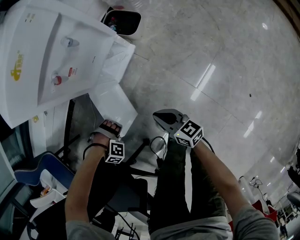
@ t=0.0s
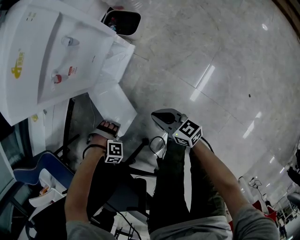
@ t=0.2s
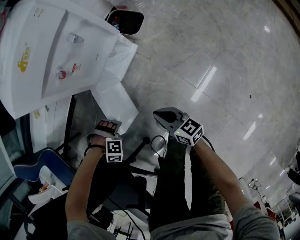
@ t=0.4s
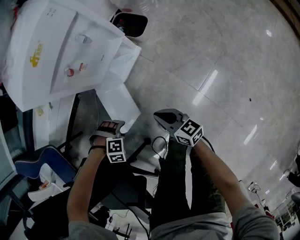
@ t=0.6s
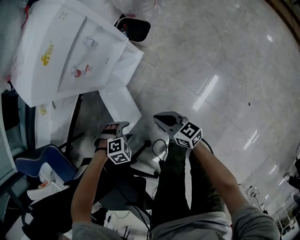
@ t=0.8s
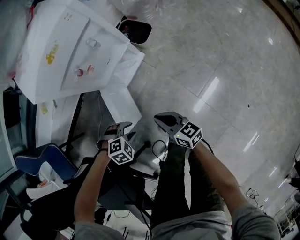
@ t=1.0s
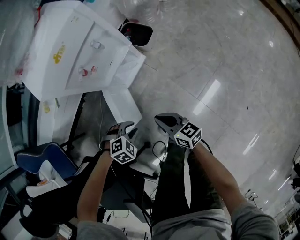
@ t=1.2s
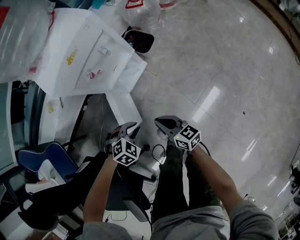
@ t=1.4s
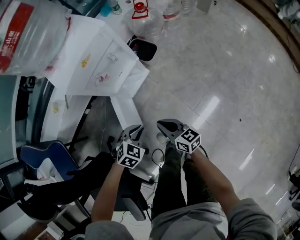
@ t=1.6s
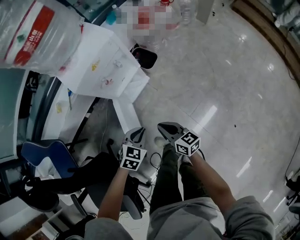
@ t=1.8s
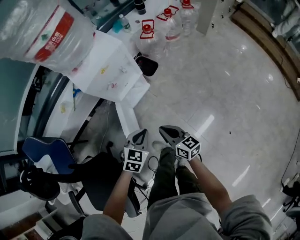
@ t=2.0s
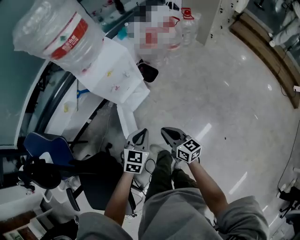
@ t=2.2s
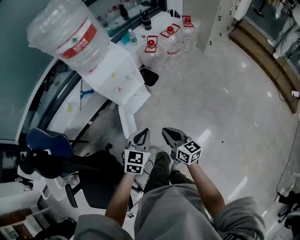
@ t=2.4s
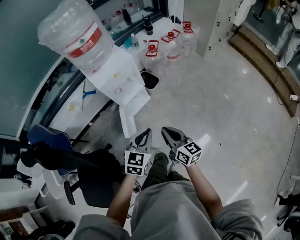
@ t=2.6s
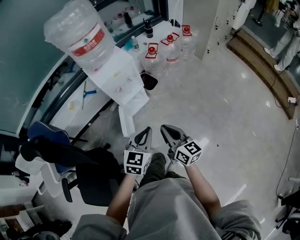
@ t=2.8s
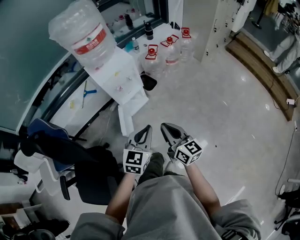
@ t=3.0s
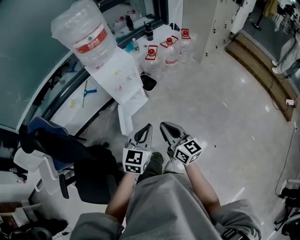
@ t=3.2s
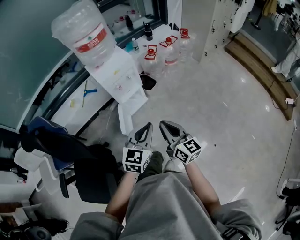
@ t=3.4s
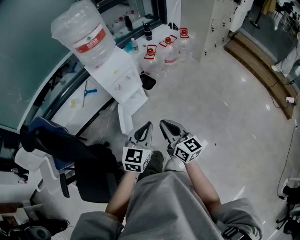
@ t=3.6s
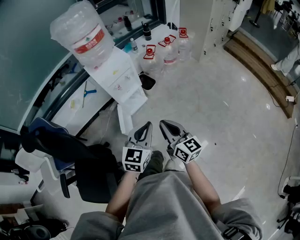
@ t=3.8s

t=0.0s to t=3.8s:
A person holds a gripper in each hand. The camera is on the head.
t=0.0s to t=1.2s: The left gripper is displaced upward by approximately 15 cm, and rolls counterclockwise, seen from behind, by some 60 degrees, while the right gripper travels upward by approximately 5 cm.
t=1.2s to t=2.6s: The grippers both shift upward by some 40 cm. The left gripper points its fingers roughly 50 degrees further upward, and closes its fingers.
t=2.6s to t=3.8s: The two grippers go roughly 10 cm upward and backward.

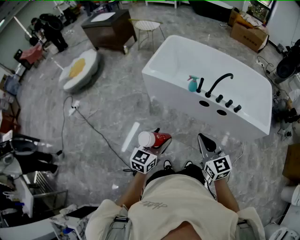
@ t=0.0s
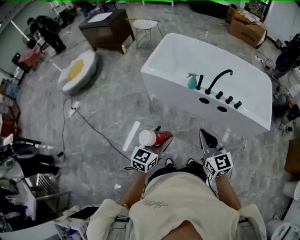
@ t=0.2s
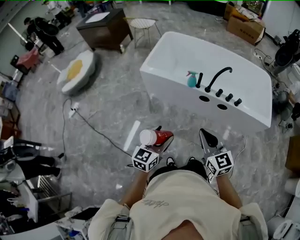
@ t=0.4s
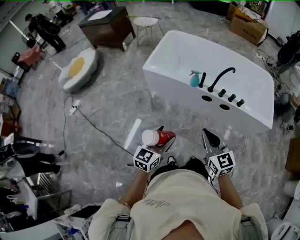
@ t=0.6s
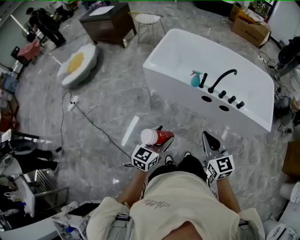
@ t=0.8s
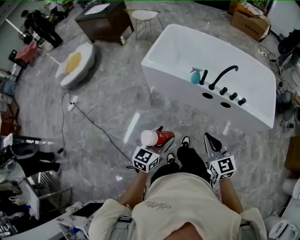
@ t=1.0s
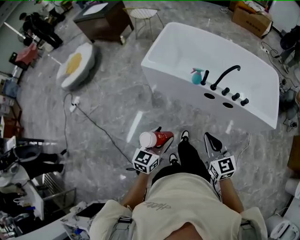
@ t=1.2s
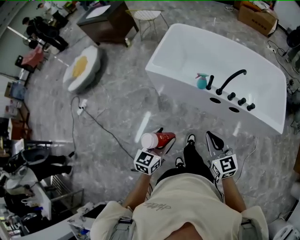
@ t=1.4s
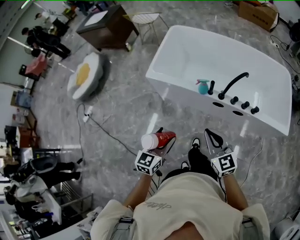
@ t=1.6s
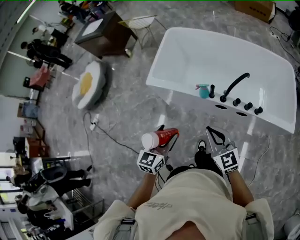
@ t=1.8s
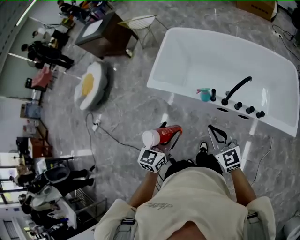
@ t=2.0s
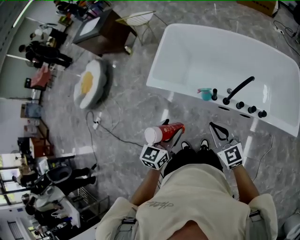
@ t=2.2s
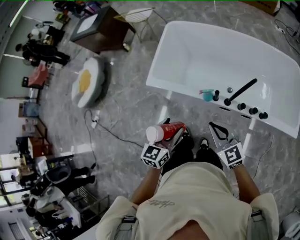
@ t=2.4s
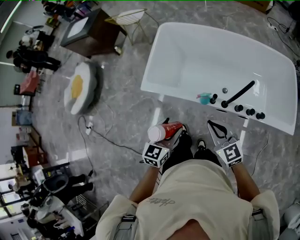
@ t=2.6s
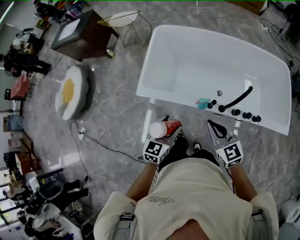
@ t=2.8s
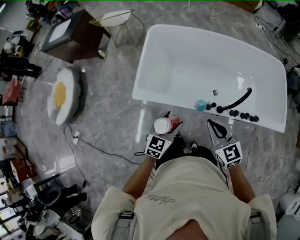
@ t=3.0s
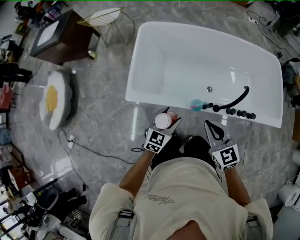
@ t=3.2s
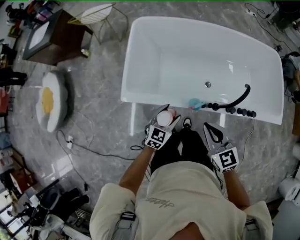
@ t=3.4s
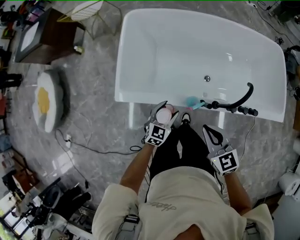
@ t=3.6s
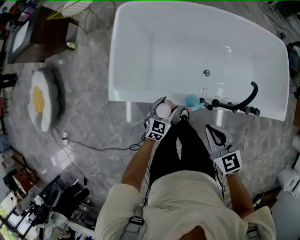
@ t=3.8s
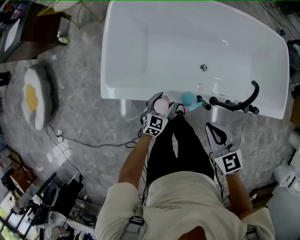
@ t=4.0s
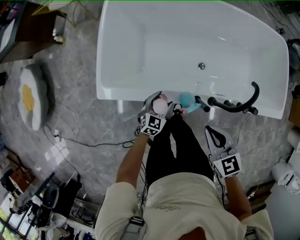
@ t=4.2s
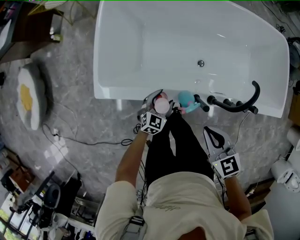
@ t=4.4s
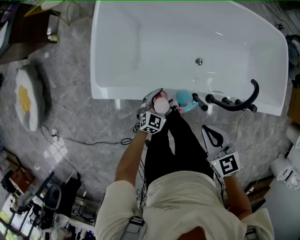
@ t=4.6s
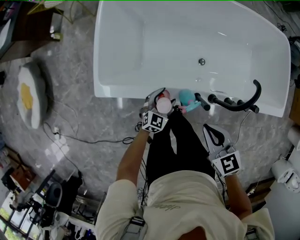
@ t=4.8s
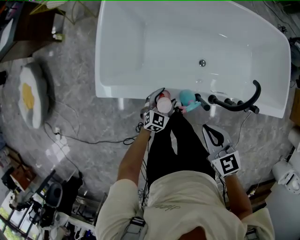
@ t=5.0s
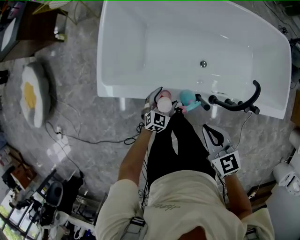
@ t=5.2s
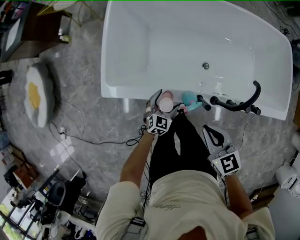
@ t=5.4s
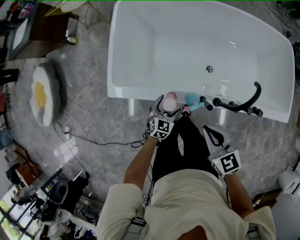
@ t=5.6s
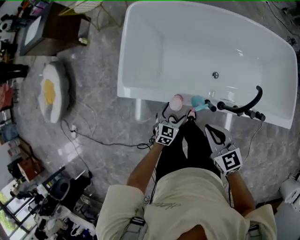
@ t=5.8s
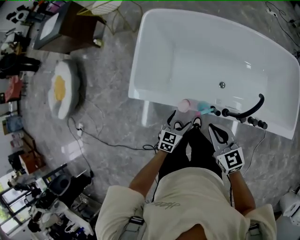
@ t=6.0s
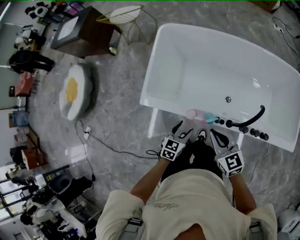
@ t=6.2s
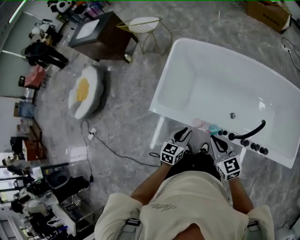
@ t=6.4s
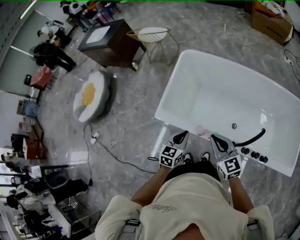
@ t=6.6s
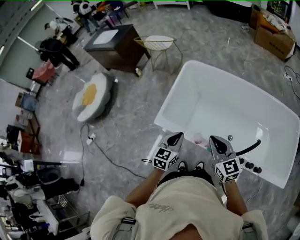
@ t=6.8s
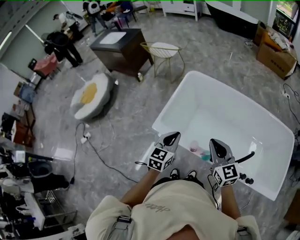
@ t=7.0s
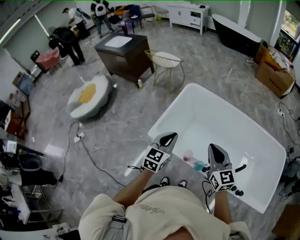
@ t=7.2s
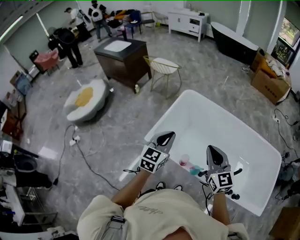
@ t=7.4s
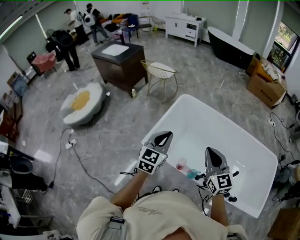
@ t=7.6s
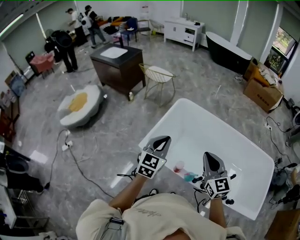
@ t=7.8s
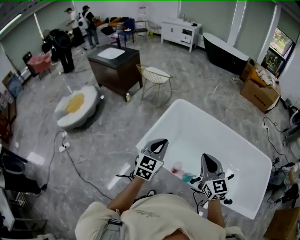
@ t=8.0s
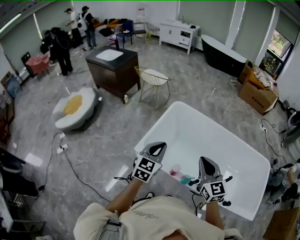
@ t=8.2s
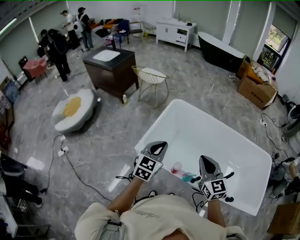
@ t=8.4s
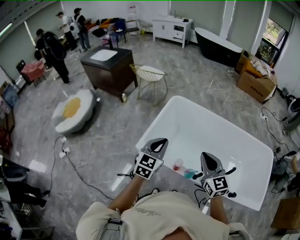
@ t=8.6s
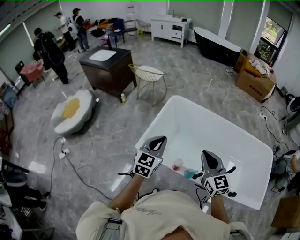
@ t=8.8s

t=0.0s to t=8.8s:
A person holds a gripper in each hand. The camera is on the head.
t=0.0s to t=1.4s: Both grippers travel together forward, roughly 10 cm.
t=1.4s to t=3.0s: Both grippers move forward, about 30 cm. The left gripper changes its angle by some 20 degrees.
t=3.0s to t=4.4s: The right gripper moves downward and to the right, roughly 15 cm, and turns by about 20 degrees; the left gripper is displaced downward and forward by roughly 30 cm.
t=4.4s to t=5.8s: The left gripper moves about 5 cm.
t=5.8s to t=7.4s: The right gripper travels upward and forward by approximately 25 cm, and changes its angle by about 30 degrees, while the left gripper shifts roughly 40 cm upward, rotates roughly 40 degrees, and closes its fingers.
t=7.4s to t=8.8s: There are only small adjustments of the grippers.

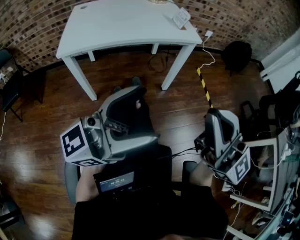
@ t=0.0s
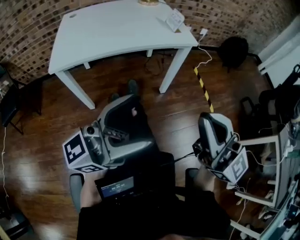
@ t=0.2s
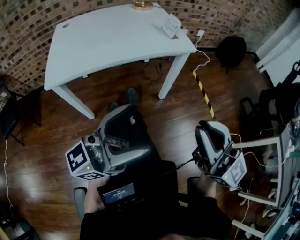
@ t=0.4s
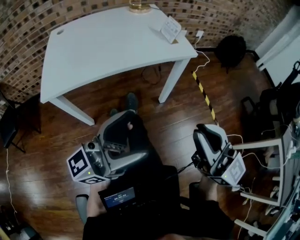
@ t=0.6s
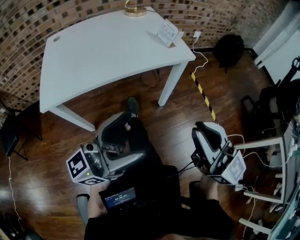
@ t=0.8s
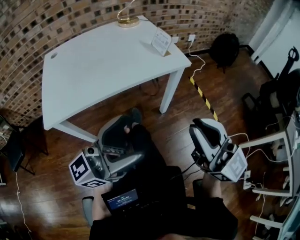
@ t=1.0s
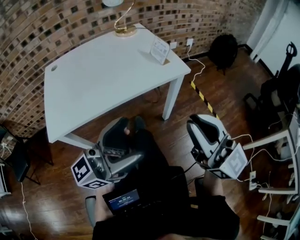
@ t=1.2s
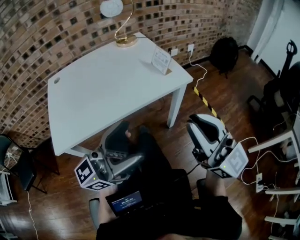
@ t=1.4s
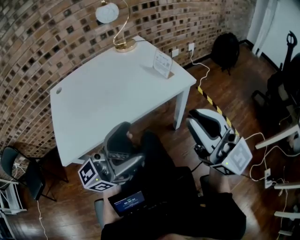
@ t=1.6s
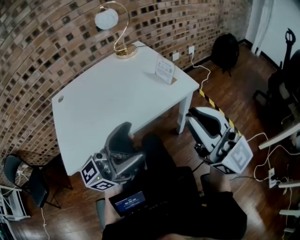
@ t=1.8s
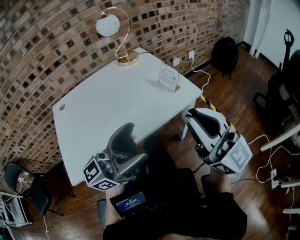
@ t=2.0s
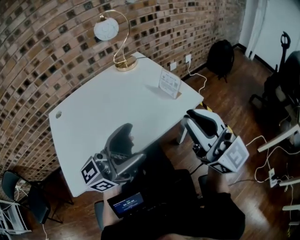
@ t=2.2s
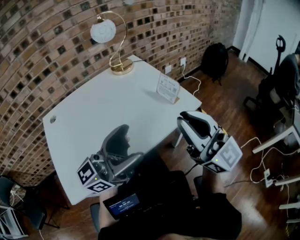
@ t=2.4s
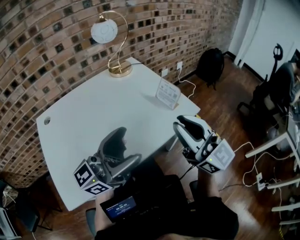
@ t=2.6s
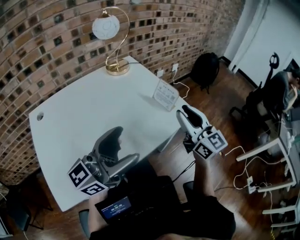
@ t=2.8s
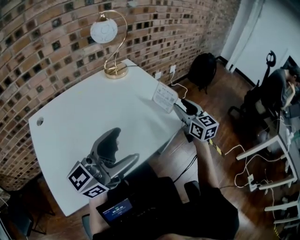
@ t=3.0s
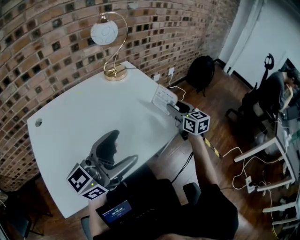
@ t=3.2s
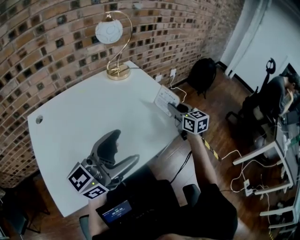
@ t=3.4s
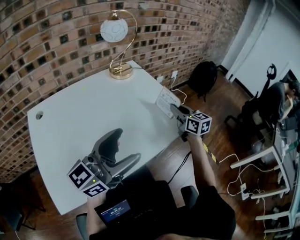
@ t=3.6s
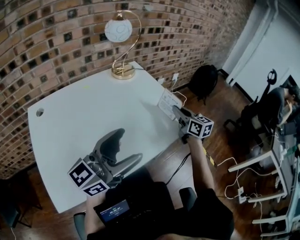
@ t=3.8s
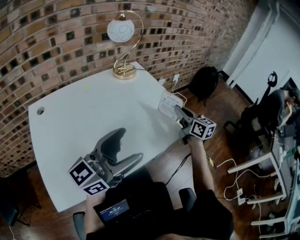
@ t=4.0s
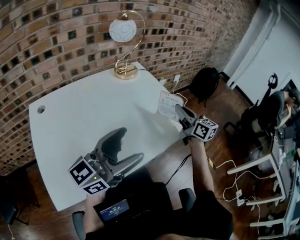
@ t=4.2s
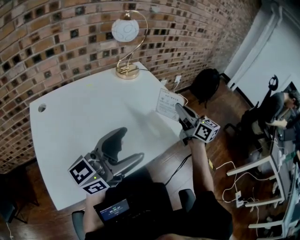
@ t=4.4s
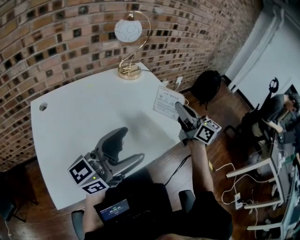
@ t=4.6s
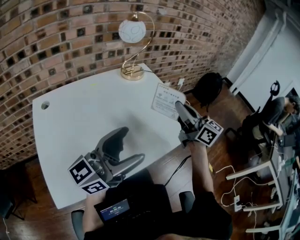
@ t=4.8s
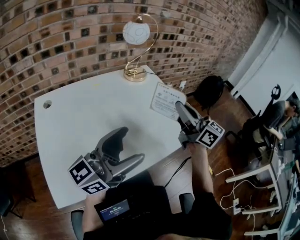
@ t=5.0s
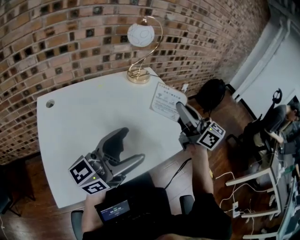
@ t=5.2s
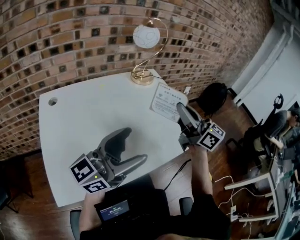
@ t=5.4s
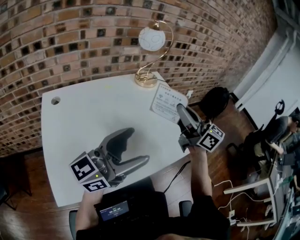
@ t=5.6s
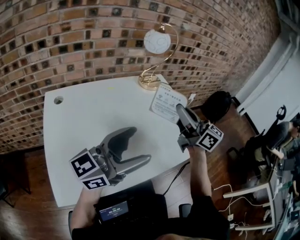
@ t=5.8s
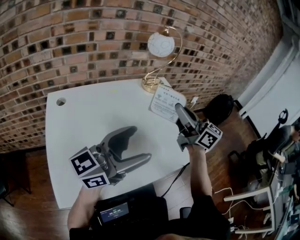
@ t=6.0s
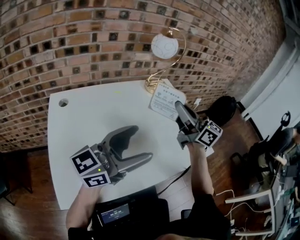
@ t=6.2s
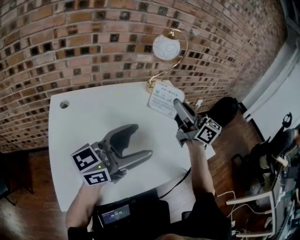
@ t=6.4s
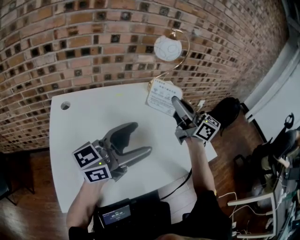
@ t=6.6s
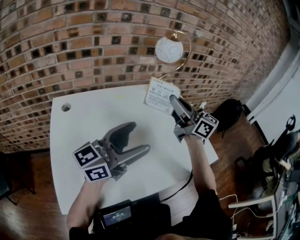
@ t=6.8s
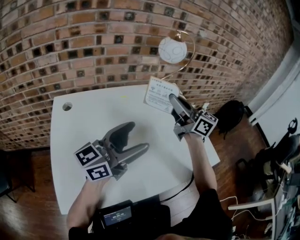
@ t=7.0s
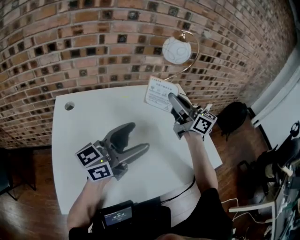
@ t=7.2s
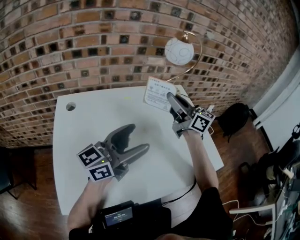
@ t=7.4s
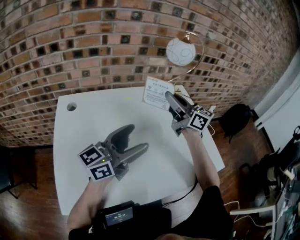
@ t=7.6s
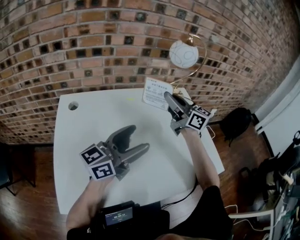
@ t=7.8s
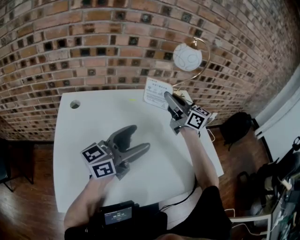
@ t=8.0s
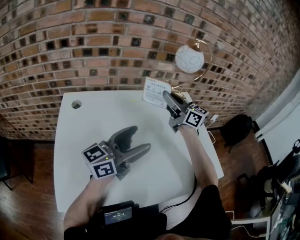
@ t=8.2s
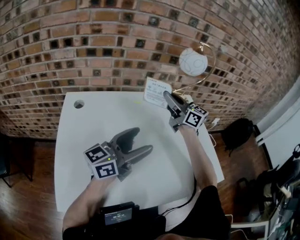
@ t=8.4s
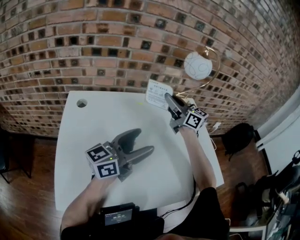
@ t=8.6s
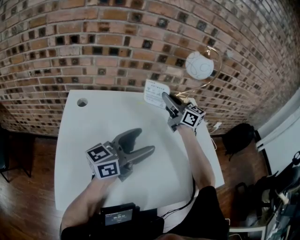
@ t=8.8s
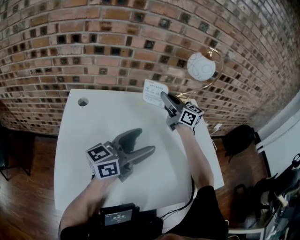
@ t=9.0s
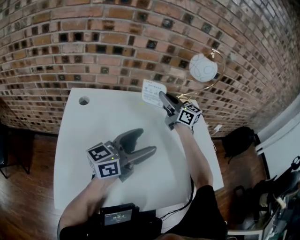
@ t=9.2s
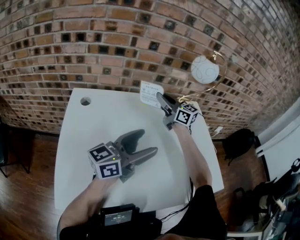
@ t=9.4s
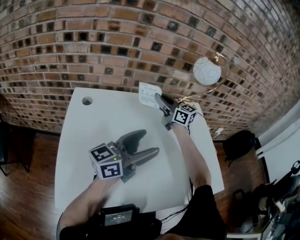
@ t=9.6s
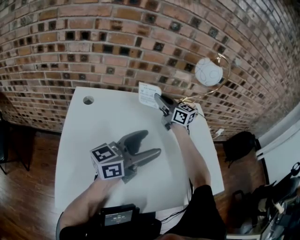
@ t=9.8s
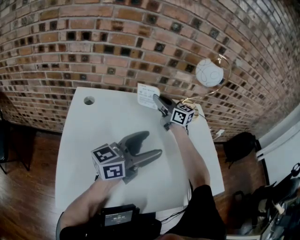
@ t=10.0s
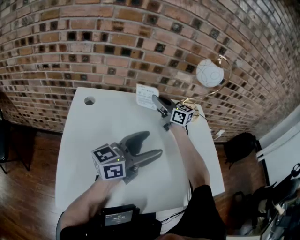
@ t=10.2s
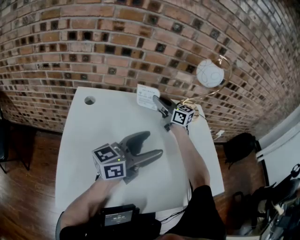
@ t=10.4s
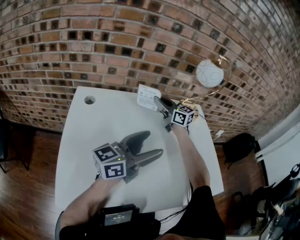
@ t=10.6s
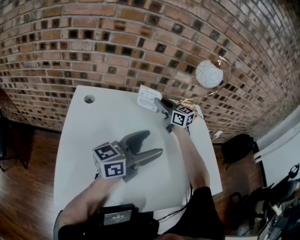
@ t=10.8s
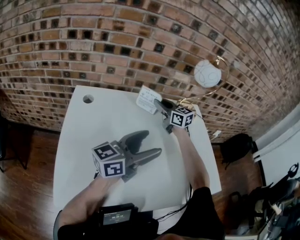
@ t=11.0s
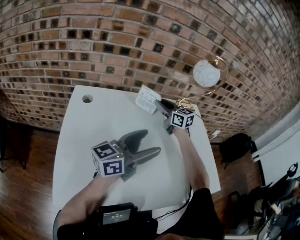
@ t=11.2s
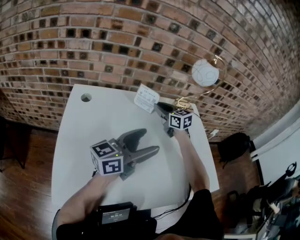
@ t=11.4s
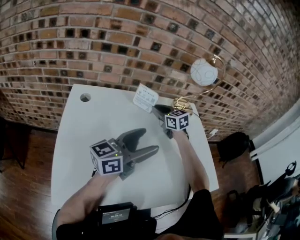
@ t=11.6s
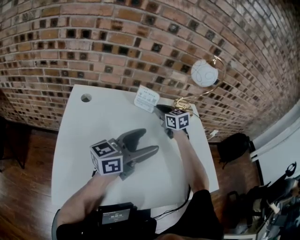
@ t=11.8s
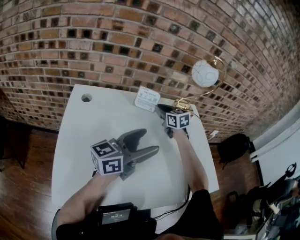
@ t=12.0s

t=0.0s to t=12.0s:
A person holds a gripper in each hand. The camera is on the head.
t=0.0s to t=1.6s: Both grippers move forward, some 25 cm.
t=1.6s to t=3.0s: The left gripper heads forward and to the left, covering roughly 20 cm, while the right gripper is displaced forward and downward by about 35 cm, swivels some 40 degrees, and opens its fingers.
t=3.0s to t=4.4s: The right gripper is displaced to the left by some 5 cm, turns by approximately 20 degrees, and closes up.
t=4.4s to t=6.0s: The right gripper is displaced to the left and upward by some 15 cm, and changes its angle by some 20 degrees, while the left gripper travels to the left by approximately 5 cm.
t=6.0s to t=7.6s: The left gripper moves forward and downward, some 10 cm; the right gripper shifts some 15 cm forward and to the left.
t=7.6s to t=9.0s: The right gripper travels forward, to the left and downward by roughly 15 cm.
t=9.0s to t=10.4s: The right gripper travels to the left and downward by some 10 cm.
t=10.4s to t=12.0s: The right gripper travels to the right and downward by approximately 10 cm, and changes its angle by roughly 30 degrees.
